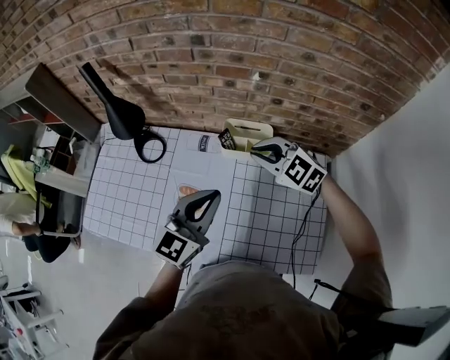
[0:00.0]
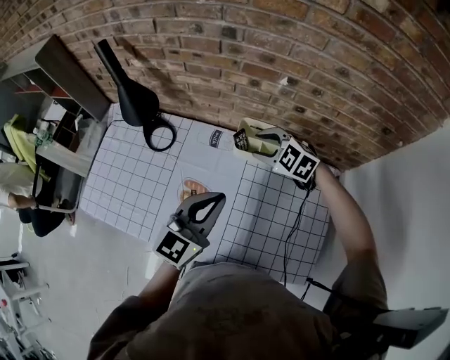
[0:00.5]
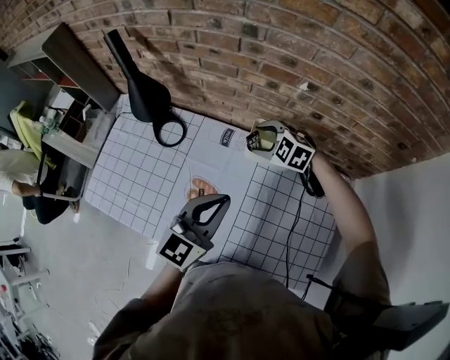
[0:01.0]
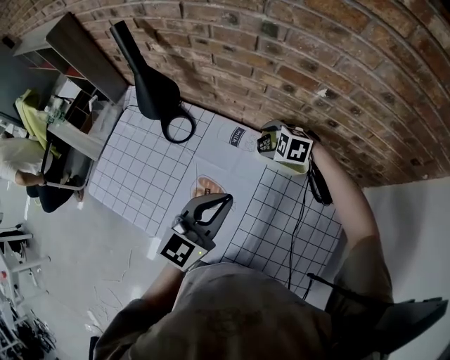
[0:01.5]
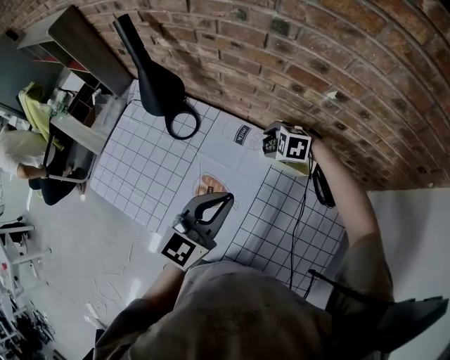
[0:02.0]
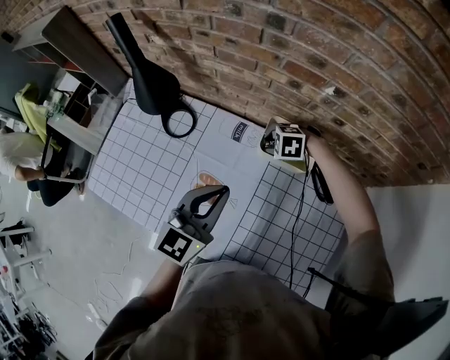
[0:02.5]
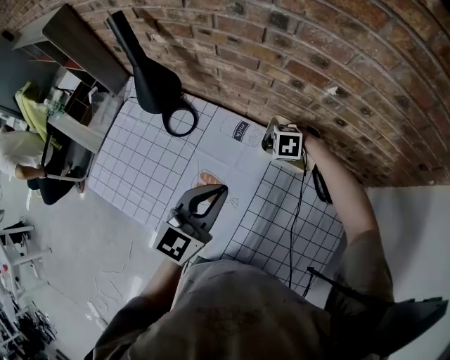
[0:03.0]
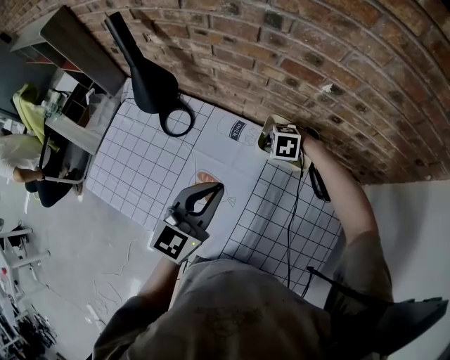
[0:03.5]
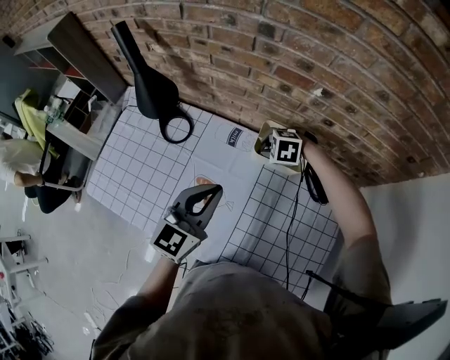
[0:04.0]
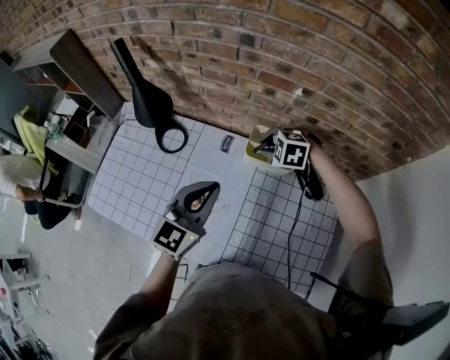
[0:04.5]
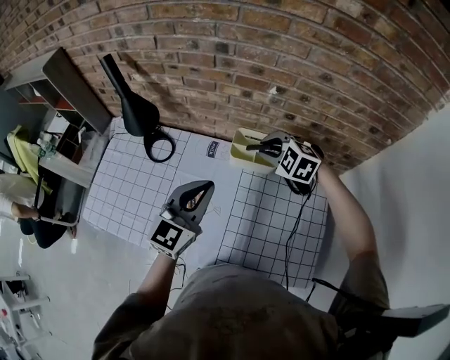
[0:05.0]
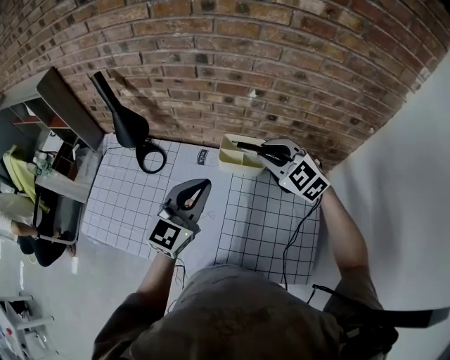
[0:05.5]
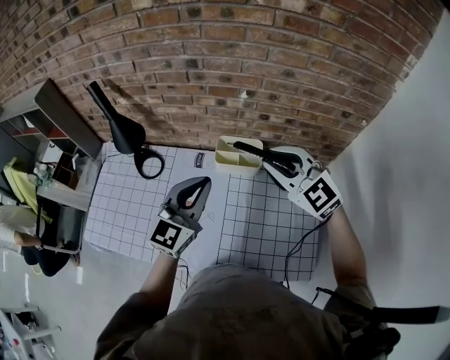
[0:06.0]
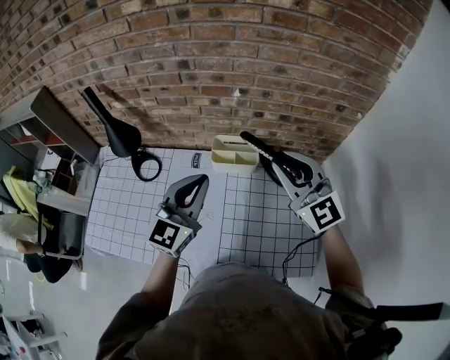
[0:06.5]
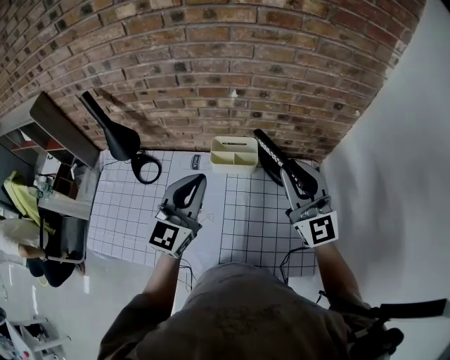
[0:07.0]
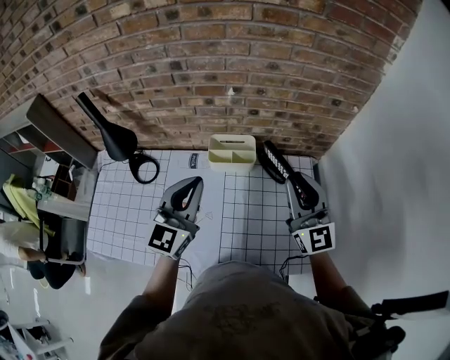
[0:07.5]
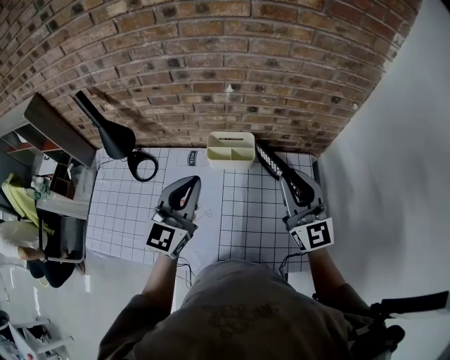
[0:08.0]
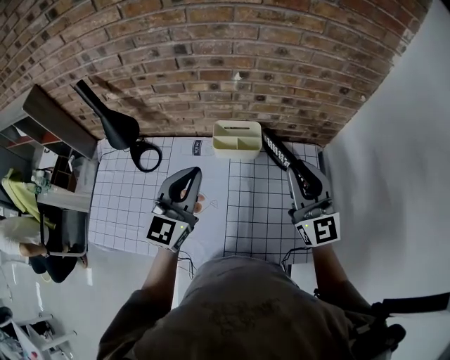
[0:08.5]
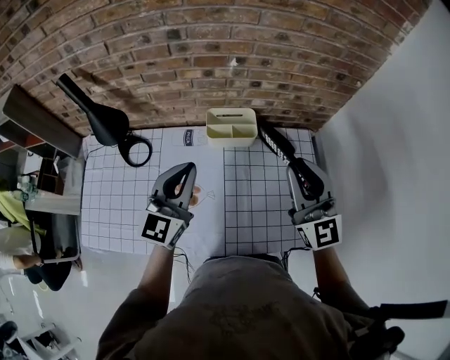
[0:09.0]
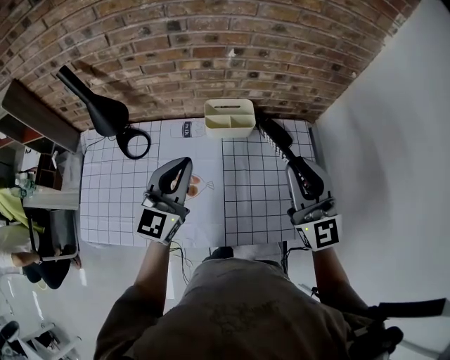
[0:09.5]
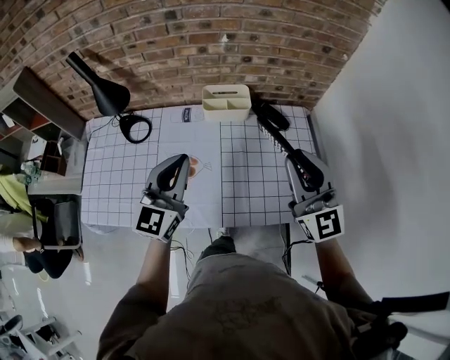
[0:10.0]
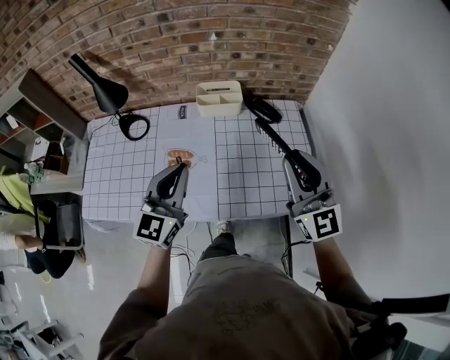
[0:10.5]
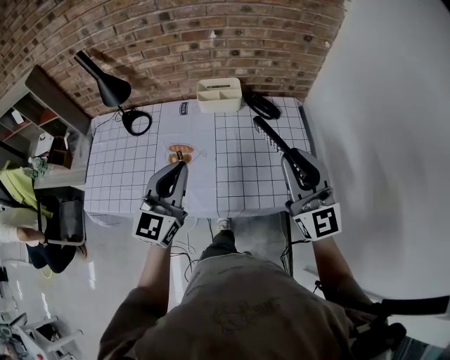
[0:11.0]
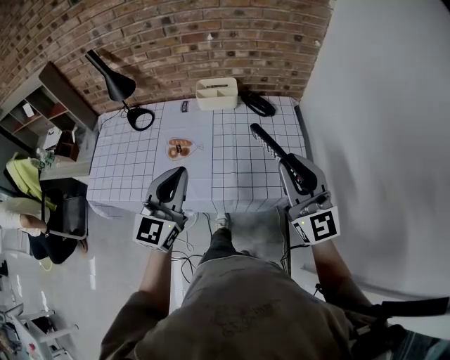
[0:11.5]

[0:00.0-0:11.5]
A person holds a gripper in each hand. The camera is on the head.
0:00.0 to 0:02.0: The left gripper moves forward, approximately 5 cm. The right gripper shifts approximately 25 cm downward and forward, tips its fingers downward by some 30 degrees, and opens its fingers.
0:02.0 to 0:04.0: The right gripper closes its fingers.
0:04.0 to 0:06.0: The right gripper shifts some 35 cm upward and backward, and angles its fingers upward, by about 60 degrees. The left gripper heads upward and to the right, covering roughly 10 cm.
0:06.0 to 0:07.5: The right gripper shifts about 10 cm to the right and backward, and rotates approximately 40 degrees.
0:07.5 to 0:09.5: The right gripper moves backward and to the left, about 10 cm, while the left gripper moves to the left, about 5 cm.
0:09.5 to 0:11.5: The two grippers go approximately 25 cm backward.

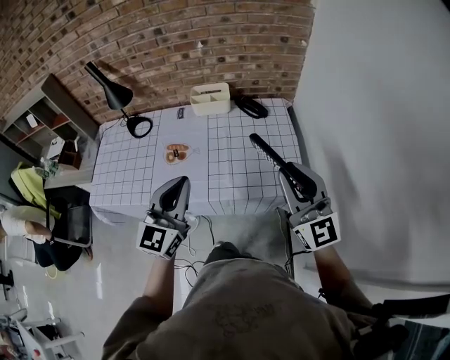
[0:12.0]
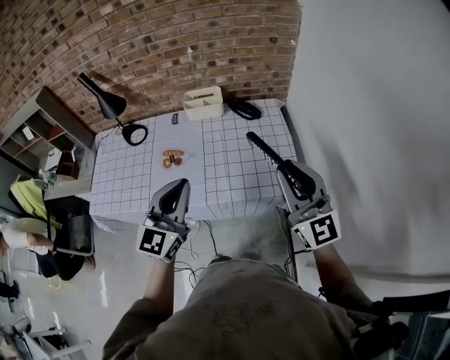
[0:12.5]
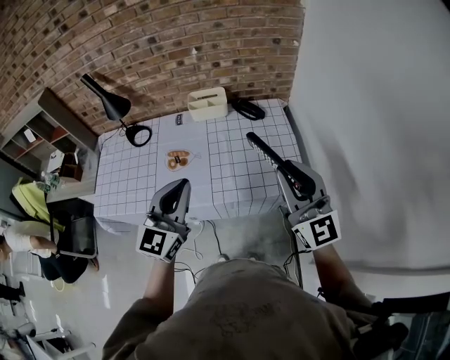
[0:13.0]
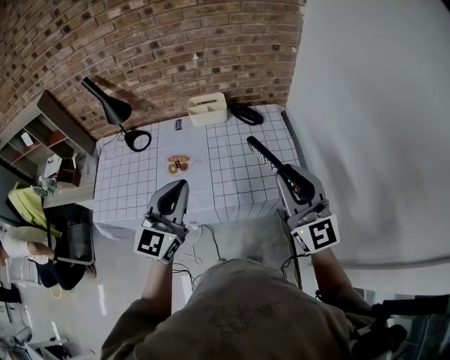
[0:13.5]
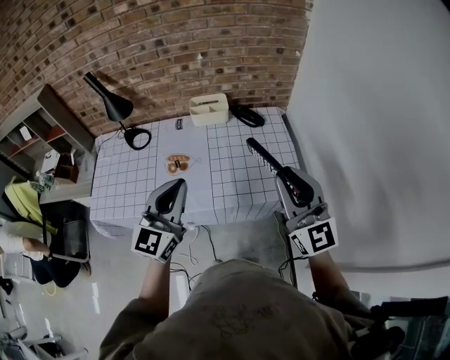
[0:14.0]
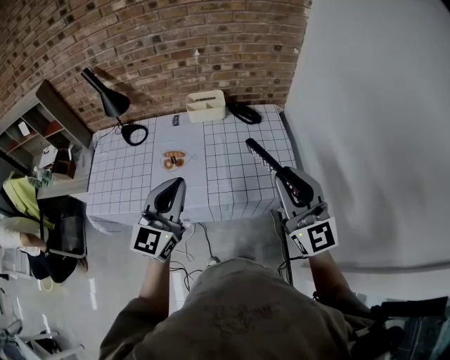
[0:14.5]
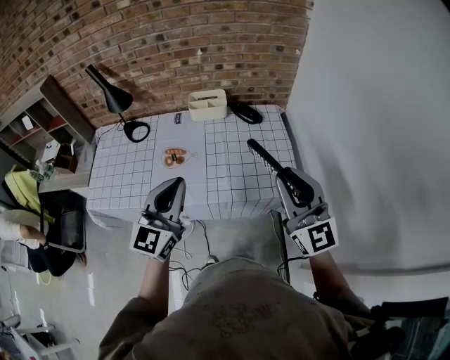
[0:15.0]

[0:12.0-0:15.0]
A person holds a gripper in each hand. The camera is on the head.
0:12.0 to 0:13.5: The left gripper changes place by roughly 5 cm, while the right gripper changes place by roughly 5 cm.
0:13.5 to 0:15.0: The grippers stay close to where they were, moving slightly.

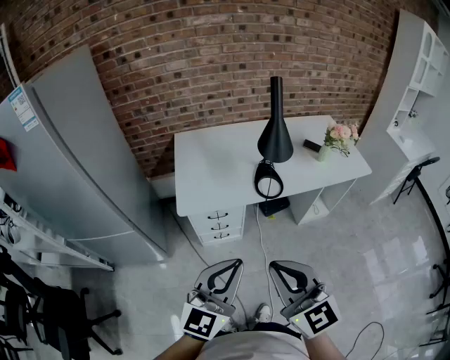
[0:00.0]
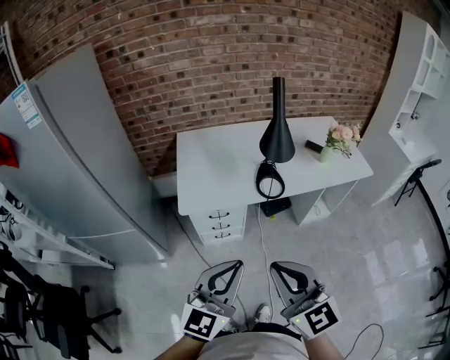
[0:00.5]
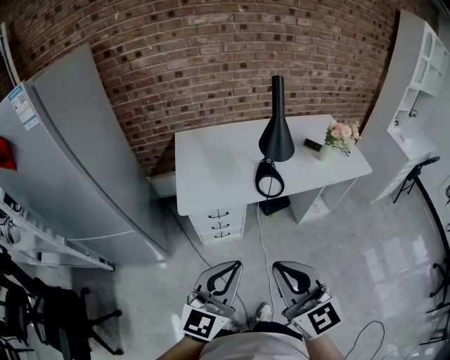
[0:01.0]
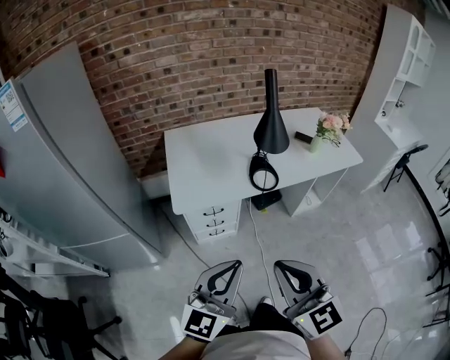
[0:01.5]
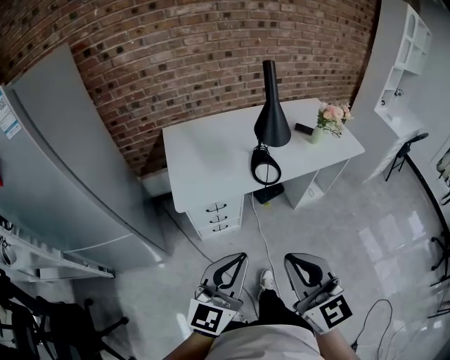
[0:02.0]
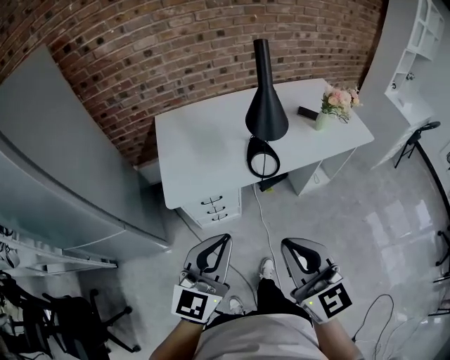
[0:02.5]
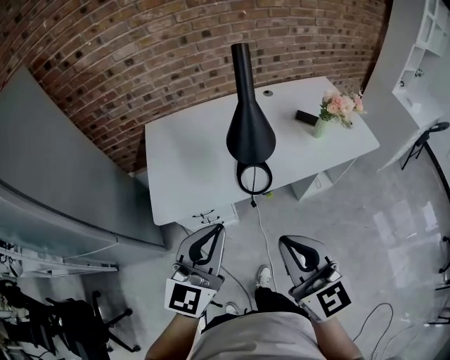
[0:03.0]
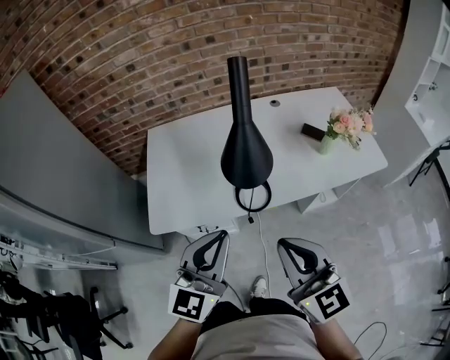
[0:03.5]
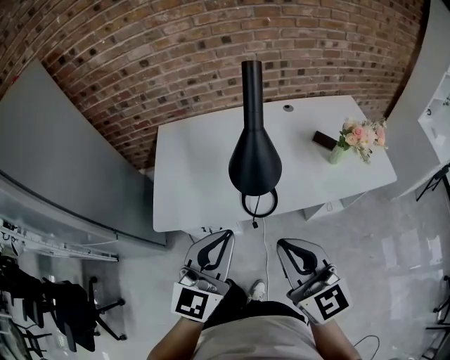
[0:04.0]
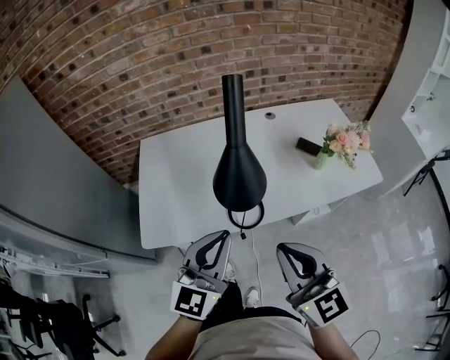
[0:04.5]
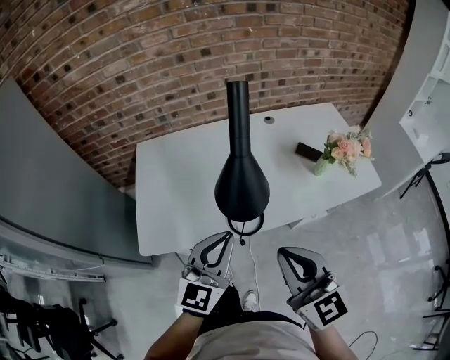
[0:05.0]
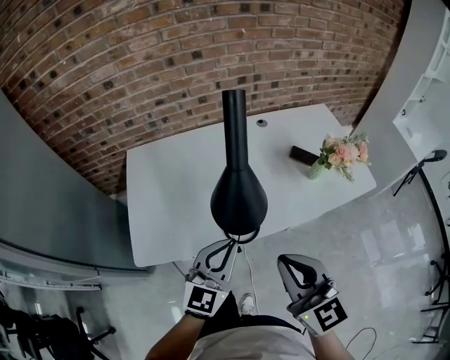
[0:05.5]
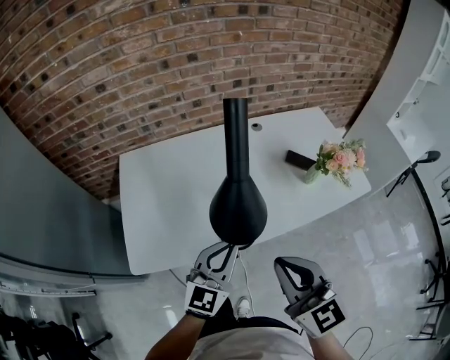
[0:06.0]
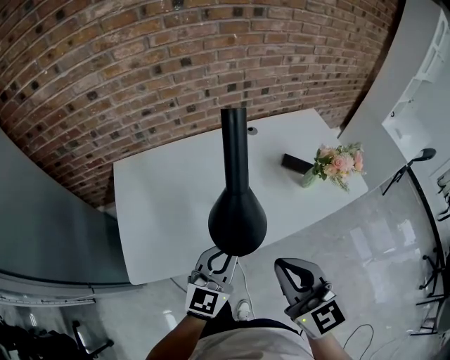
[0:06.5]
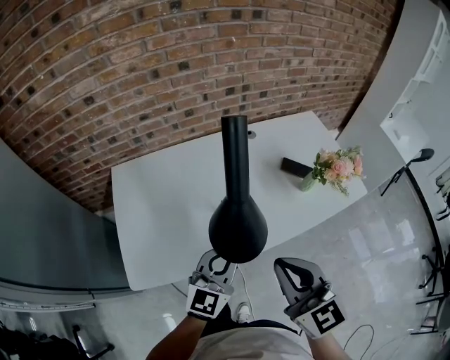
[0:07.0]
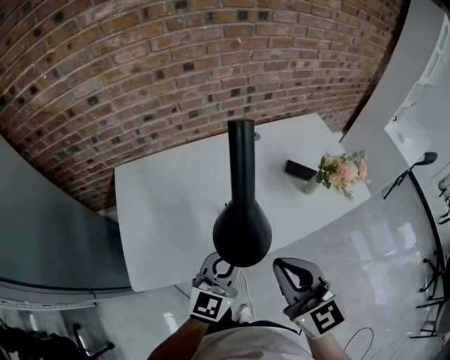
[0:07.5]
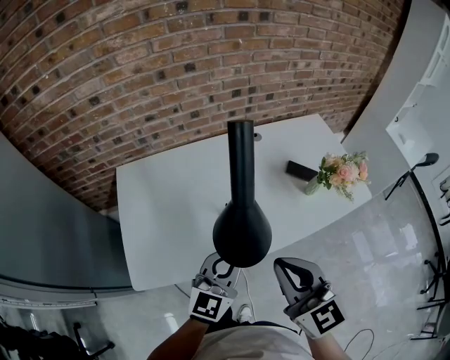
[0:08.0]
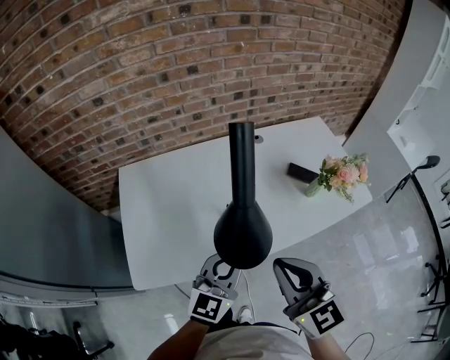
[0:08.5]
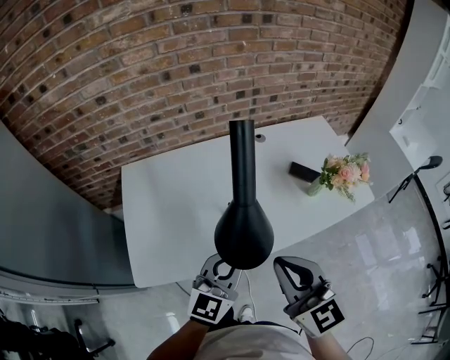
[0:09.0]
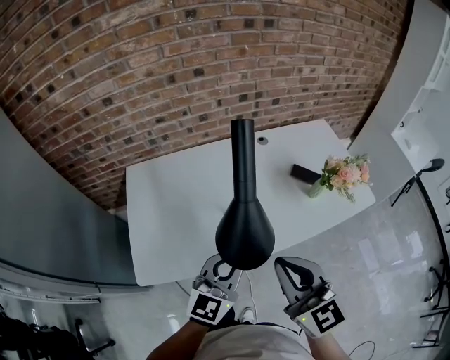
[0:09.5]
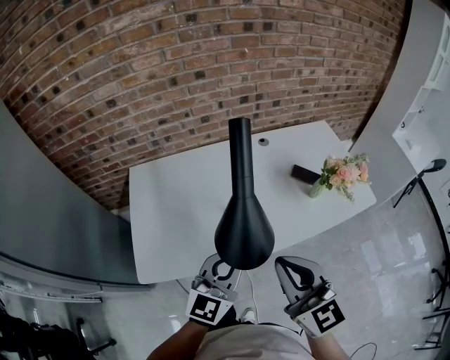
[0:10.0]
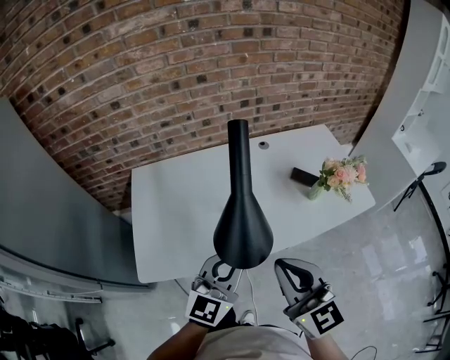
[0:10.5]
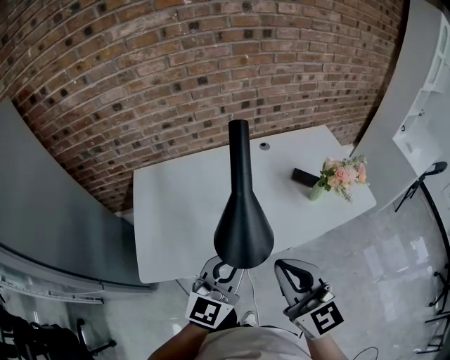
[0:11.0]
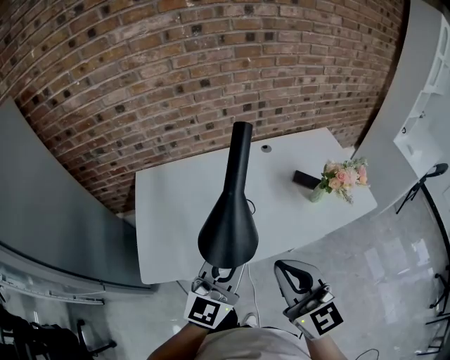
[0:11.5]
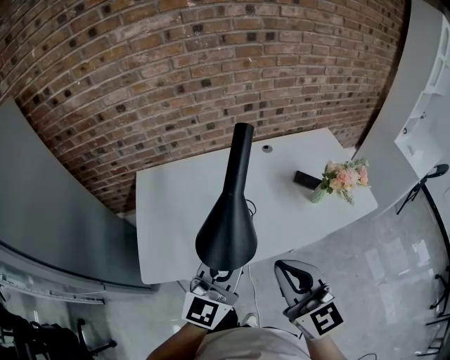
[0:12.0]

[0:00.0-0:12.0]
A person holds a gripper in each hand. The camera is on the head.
0:00.0 to 0:02.0: There are only small adjustments of the grippers.
0:02.0 to 0:04.0: Both grippers move forward and to the right, approximately 30 cm.
0:04.0 to 0:06.0: The right gripper goes some 5 cm forward. Meanwhile the left gripper heads forward and downward, covering roughly 15 cm.
0:06.0 to 0:08.0: The right gripper changes place by approximately 5 cm.
0:08.0 to 0:10.0: The grippers stay close to where they were, moving slightly.
0:10.0 to 0:12.0: The grippers make only small movements.
